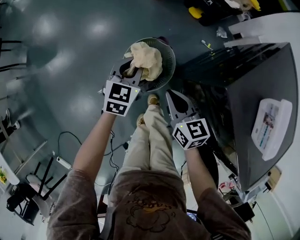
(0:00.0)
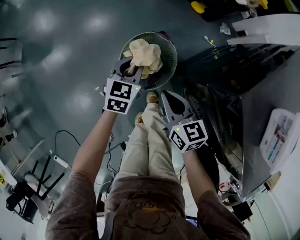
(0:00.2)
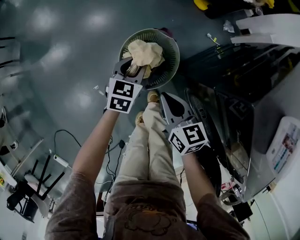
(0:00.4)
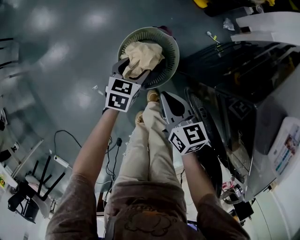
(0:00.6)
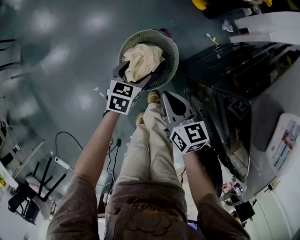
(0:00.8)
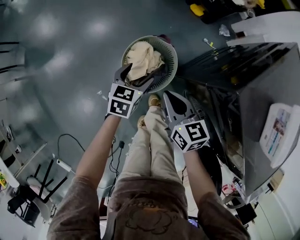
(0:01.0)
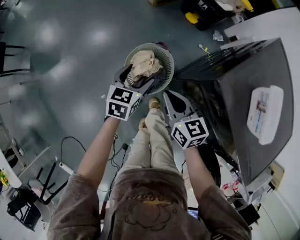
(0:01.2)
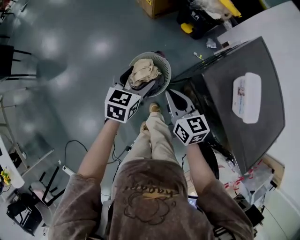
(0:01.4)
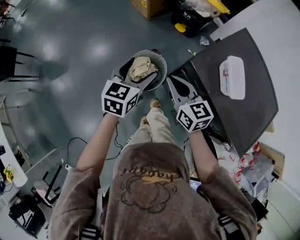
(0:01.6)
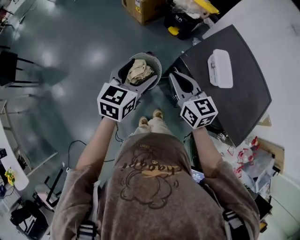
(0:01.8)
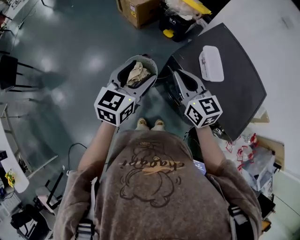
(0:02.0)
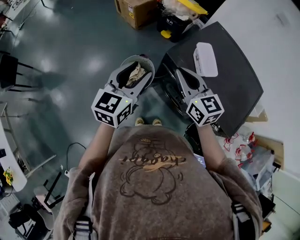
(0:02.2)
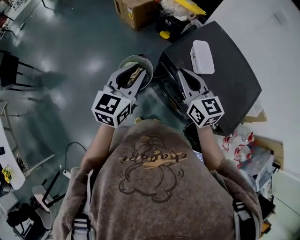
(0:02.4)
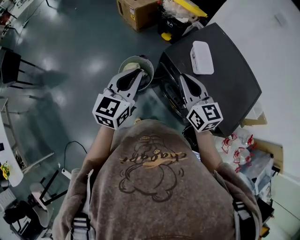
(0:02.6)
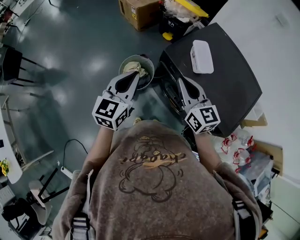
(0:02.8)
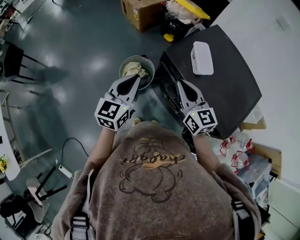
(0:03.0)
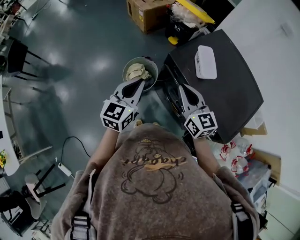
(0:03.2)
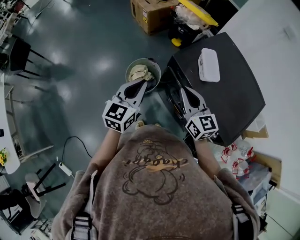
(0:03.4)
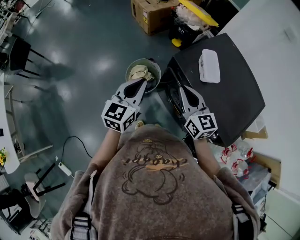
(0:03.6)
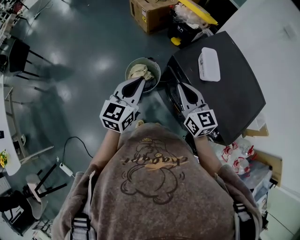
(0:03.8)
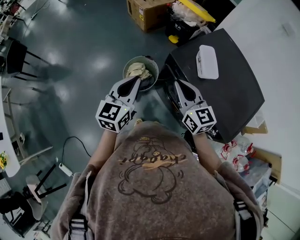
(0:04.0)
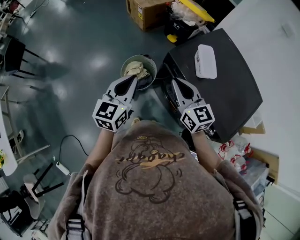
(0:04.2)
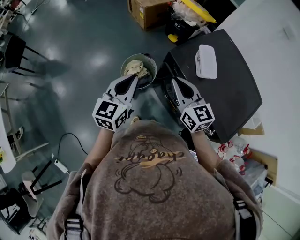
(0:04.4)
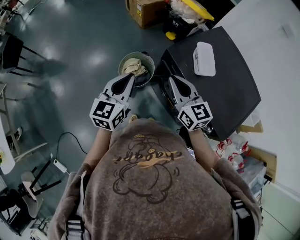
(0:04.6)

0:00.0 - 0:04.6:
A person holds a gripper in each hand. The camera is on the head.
0:00.0 - 0:01.6: Both grippers travel together upward, approximately 20 cm. The left gripper opens its fingers.
0:01.6 - 0:03.0: The right gripper shifts approximately 20 cm to the right, upward and backward; the left gripper heads backward, upward and to the right, covering some 20 cm, and closes.
0:03.0 - 0:04.6: There are only small adjustments of the grippers.

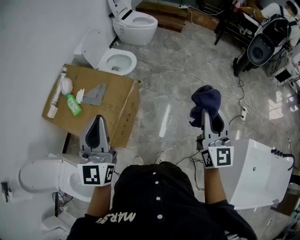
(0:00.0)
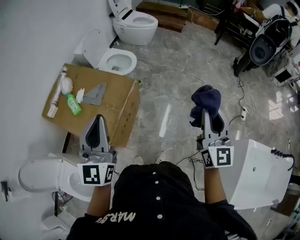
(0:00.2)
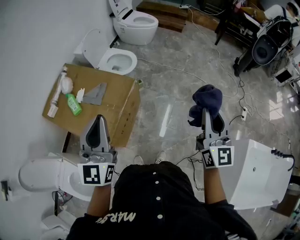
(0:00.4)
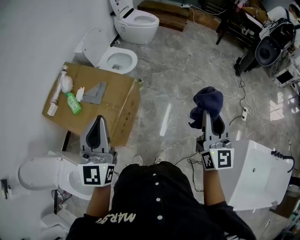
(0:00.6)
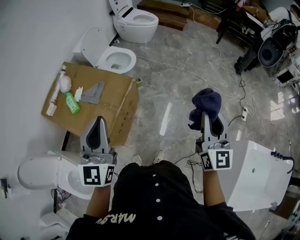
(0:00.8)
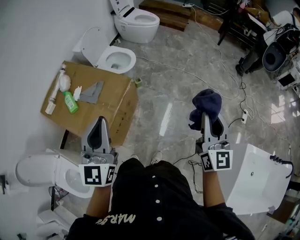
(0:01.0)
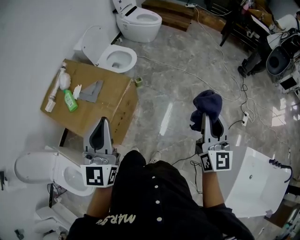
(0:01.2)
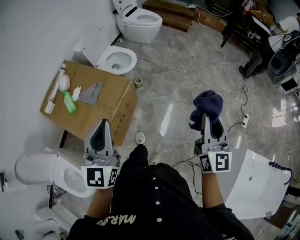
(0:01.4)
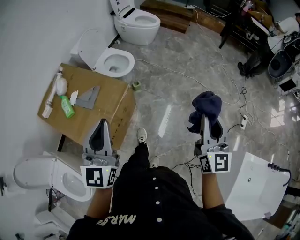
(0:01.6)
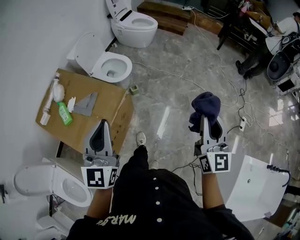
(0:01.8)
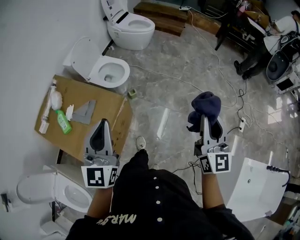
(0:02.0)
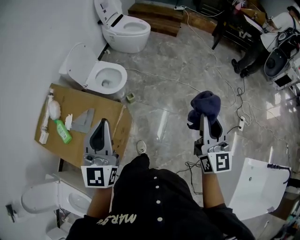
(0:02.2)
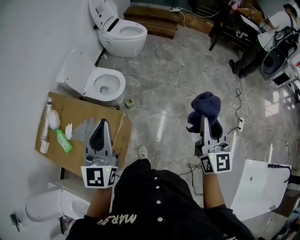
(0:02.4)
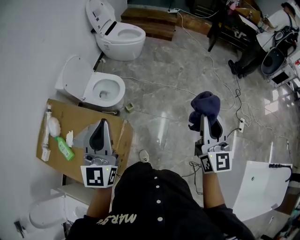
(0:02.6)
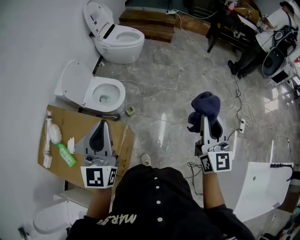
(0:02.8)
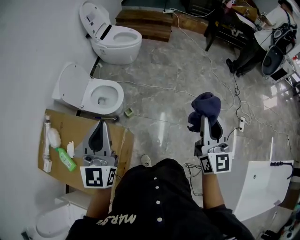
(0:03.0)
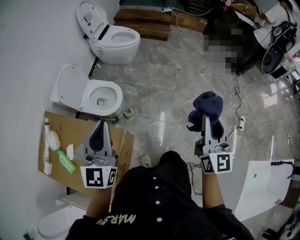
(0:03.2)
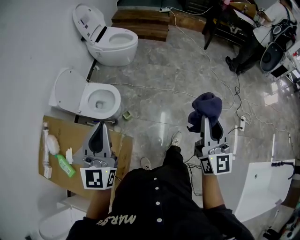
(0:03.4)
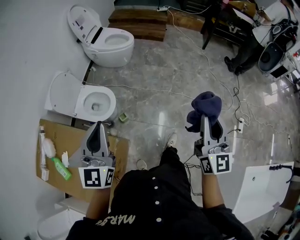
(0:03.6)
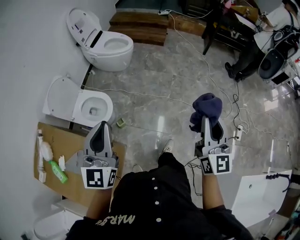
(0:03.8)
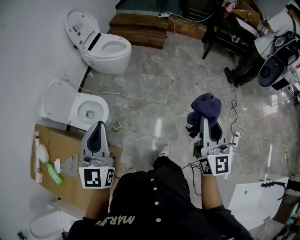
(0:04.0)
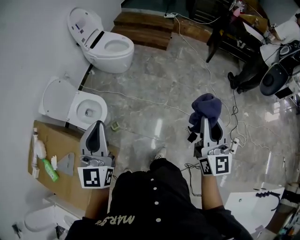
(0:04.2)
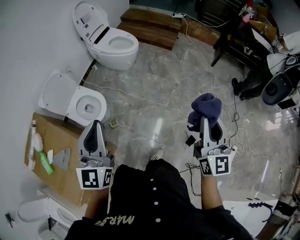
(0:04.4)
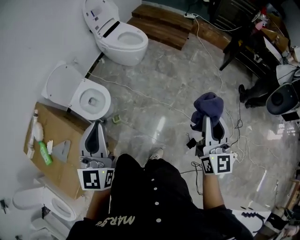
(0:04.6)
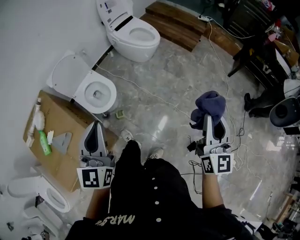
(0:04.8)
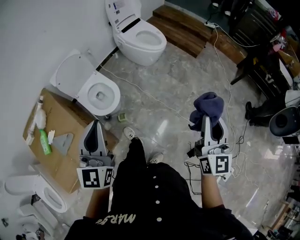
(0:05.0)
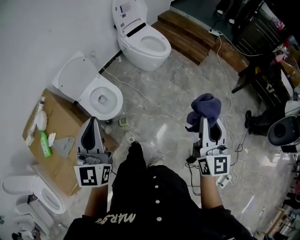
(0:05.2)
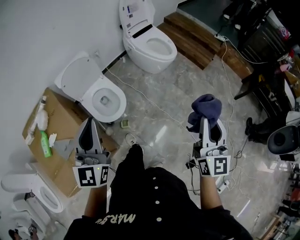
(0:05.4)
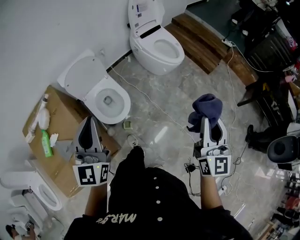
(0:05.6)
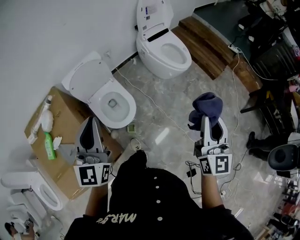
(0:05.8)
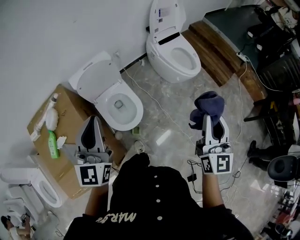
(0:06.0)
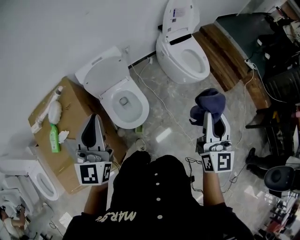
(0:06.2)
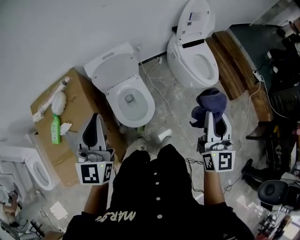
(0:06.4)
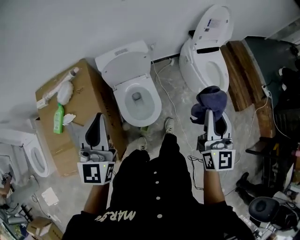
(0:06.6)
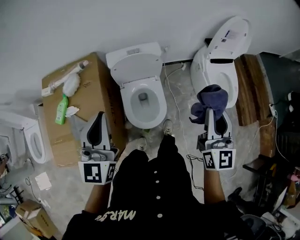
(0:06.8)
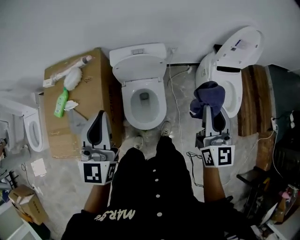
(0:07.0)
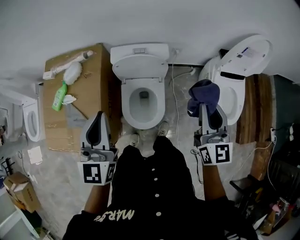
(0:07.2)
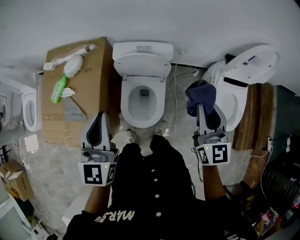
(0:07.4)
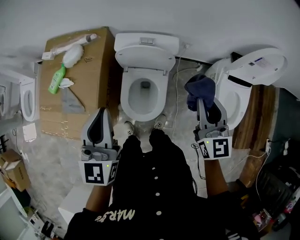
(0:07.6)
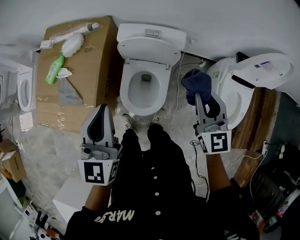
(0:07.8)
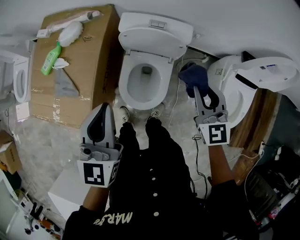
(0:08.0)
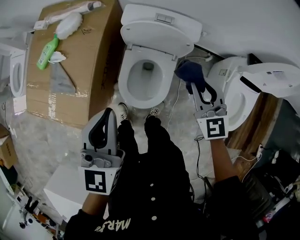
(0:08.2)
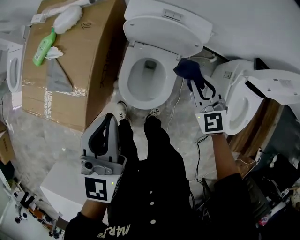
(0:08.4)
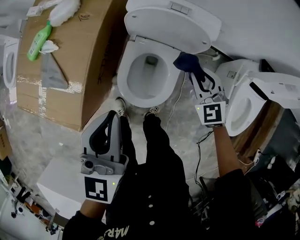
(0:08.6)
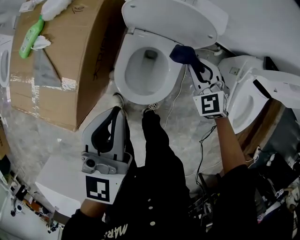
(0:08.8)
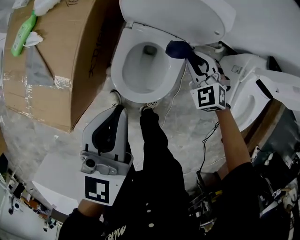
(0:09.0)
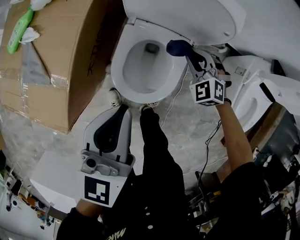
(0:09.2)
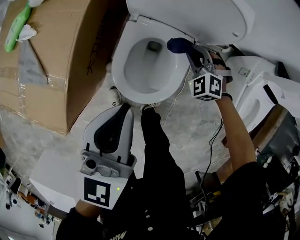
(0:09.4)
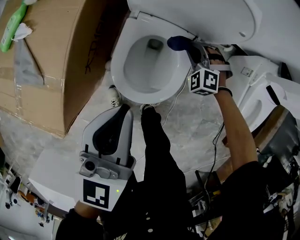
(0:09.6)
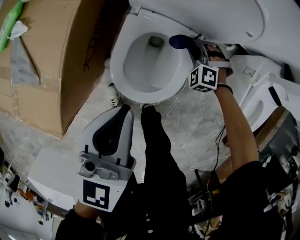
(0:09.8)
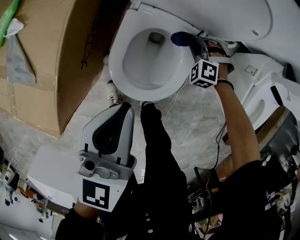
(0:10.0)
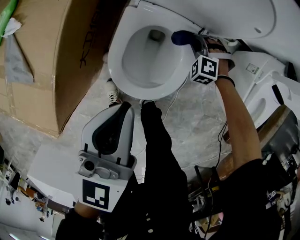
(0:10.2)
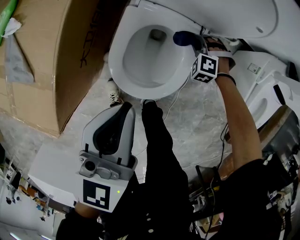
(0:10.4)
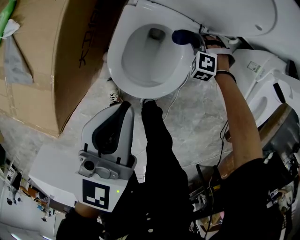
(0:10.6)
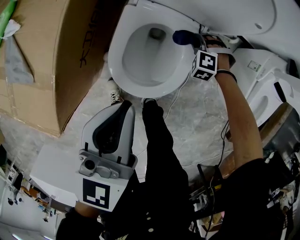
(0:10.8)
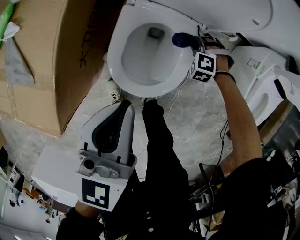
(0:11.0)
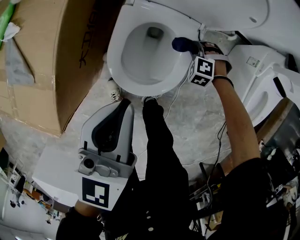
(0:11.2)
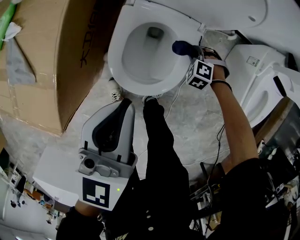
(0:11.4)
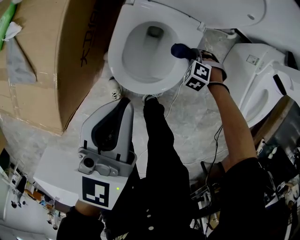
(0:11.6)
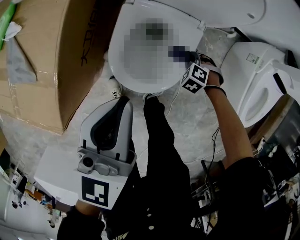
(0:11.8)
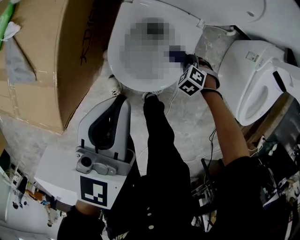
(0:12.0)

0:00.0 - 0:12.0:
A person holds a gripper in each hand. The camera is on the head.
0:00.0 - 0:01.6: The right gripper heads to the right and forward, covering approximately 10 cm. The left gripper heads to the right, covering some 5 cm.
0:01.6 - 0:03.0: The grippers both shift forward by about 25 cm.
0:03.0 - 0:04.4: Both grippers travel together forward and to the right, roughly 30 cm.
0:04.4 - 0:06.0: The left gripper ends up some 30 cm from where it was, and rotates about 30 degrees, while the right gripper moves roughly 40 cm, and swivels some 30 degrees.
0:06.0 - 0:07.6: The left gripper ends up about 15 cm from where it was, and swivels approximately 40 degrees. Meanwhile the right gripper ends up about 40 cm from where it was, and turns by about 60 degrees.
0:07.6 - 0:09.0: The left gripper goes roughly 20 cm downward, while the right gripper travels downward by about 40 cm, and points its fingers about 30 degrees further downward.
0:09.0 - 0:10.4: The right gripper shifts some 25 cm downward, and swivels about 40 degrees, while the left gripper moves downward, roughly 10 cm.
0:10.4 - 0:12.0: The right gripper moves some 15 cm, and swivels some 30 degrees.

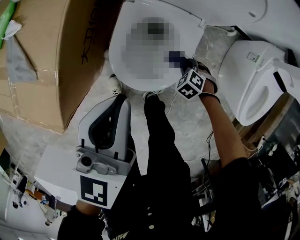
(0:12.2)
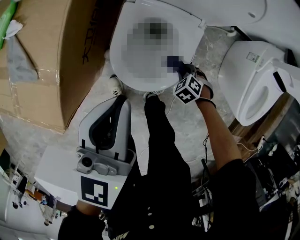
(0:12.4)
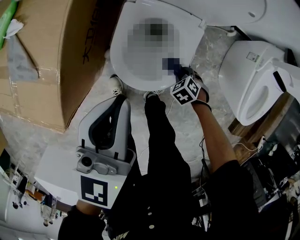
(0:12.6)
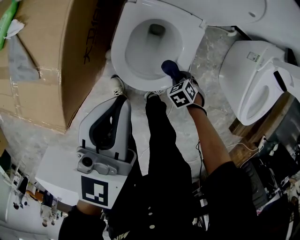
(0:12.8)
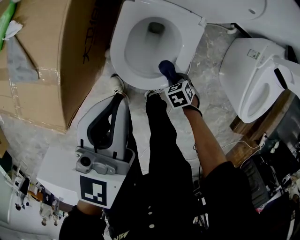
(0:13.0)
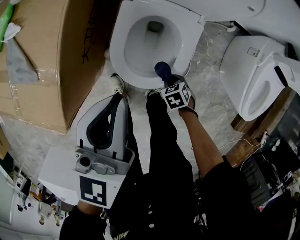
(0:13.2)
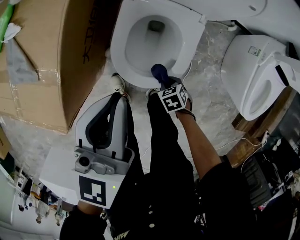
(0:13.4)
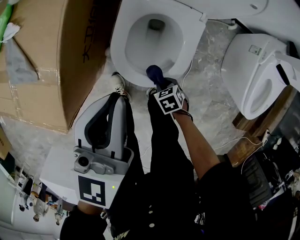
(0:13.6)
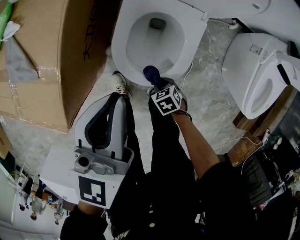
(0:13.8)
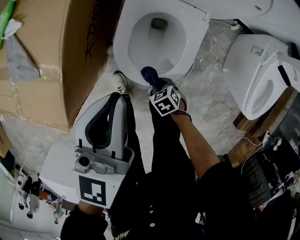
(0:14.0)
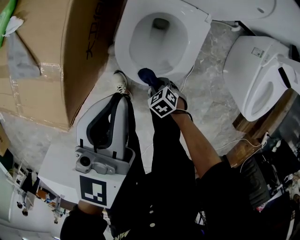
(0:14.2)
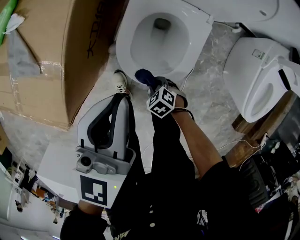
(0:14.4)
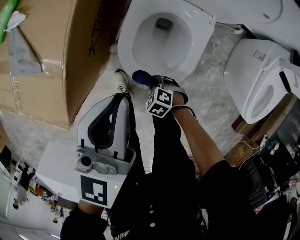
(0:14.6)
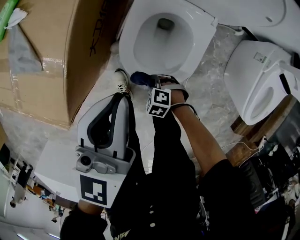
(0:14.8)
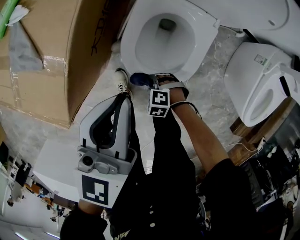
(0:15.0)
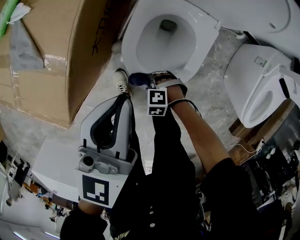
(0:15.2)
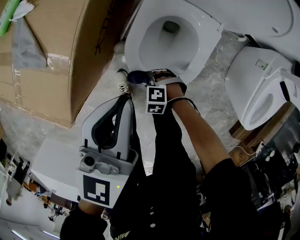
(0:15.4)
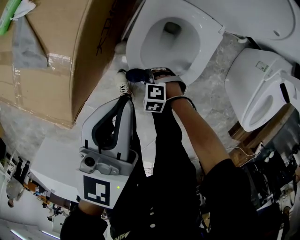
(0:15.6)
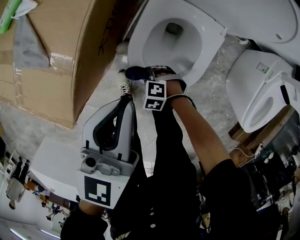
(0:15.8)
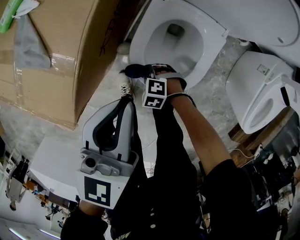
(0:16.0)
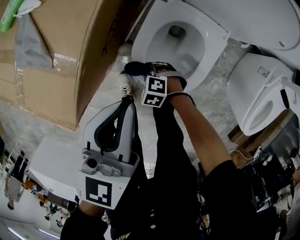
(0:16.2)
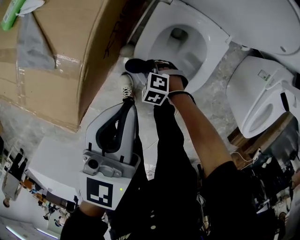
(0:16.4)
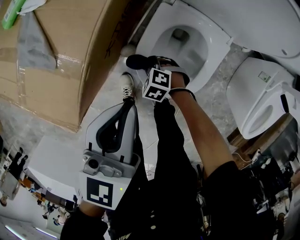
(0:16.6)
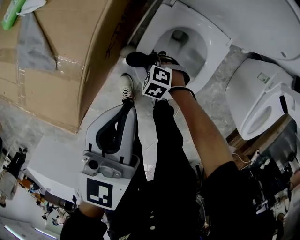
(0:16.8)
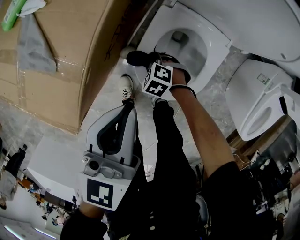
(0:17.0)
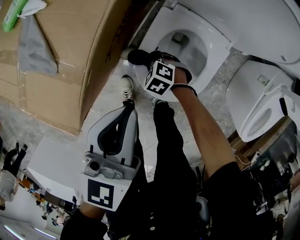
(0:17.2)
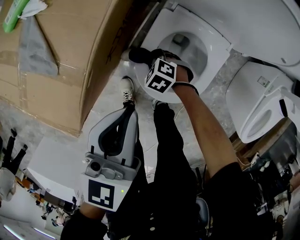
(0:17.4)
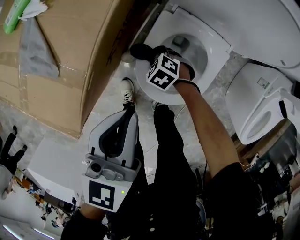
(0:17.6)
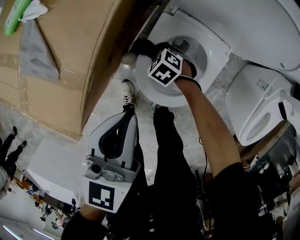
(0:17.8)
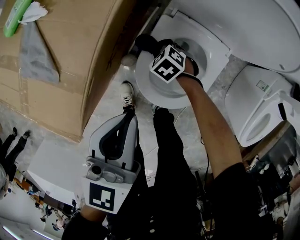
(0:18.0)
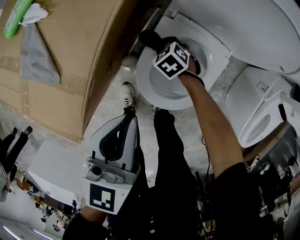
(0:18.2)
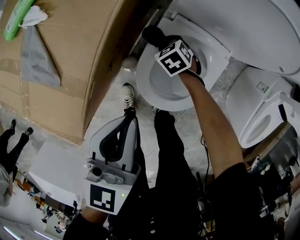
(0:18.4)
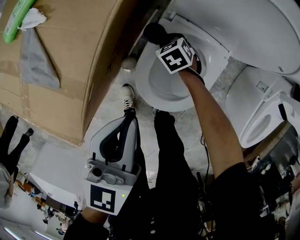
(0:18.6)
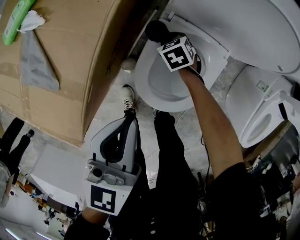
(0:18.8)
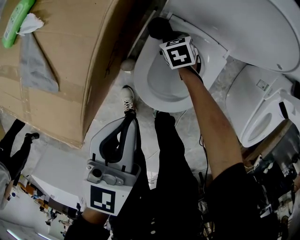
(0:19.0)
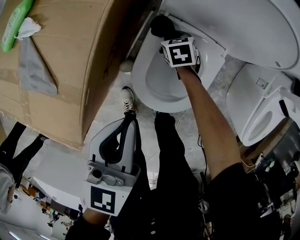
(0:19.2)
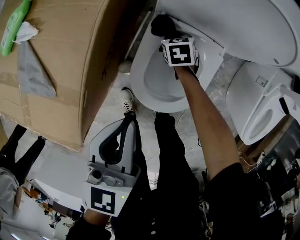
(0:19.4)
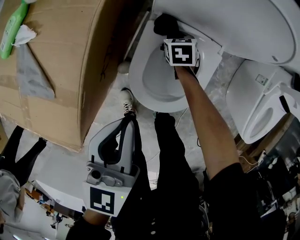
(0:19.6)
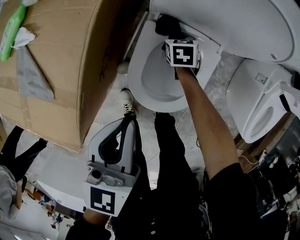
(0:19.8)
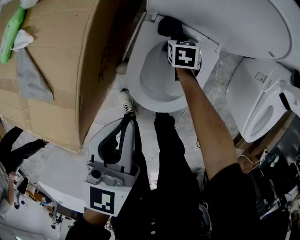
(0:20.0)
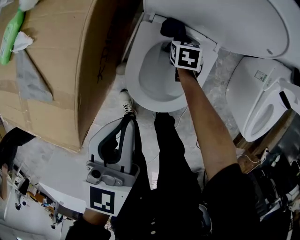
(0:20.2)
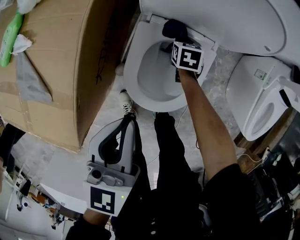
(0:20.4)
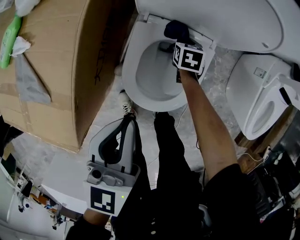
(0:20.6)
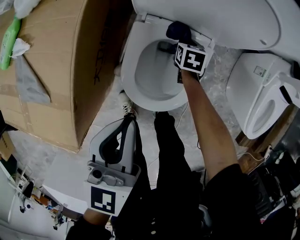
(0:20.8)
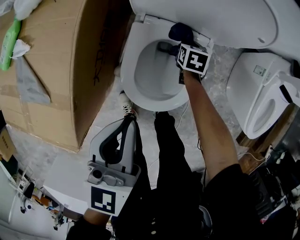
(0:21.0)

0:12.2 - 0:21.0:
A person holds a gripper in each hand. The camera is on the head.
0:12.2 - 0:13.6: The right gripper ends up some 15 cm from where it was, and turns by some 40 degrees.
0:13.6 - 0:15.2: The right gripper shifts by about 10 cm, and rolls counterclockwise, seen from behind, by roughly 70 degrees.
0:15.2 - 0:16.6: The right gripper heads forward, covering about 10 cm.
0:16.6 - 0:18.0: The right gripper goes about 15 cm forward and to the right.
0:18.0 - 0:19.6: The right gripper changes place by about 15 cm, and twists about 40 degrees clockwise, seen from behind.
0:19.6 - 0:21.0: The right gripper goes some 10 cm to the right, and swivels some 20 degrees.
